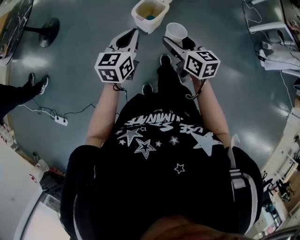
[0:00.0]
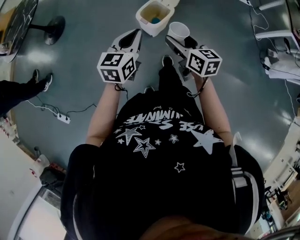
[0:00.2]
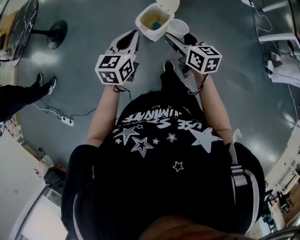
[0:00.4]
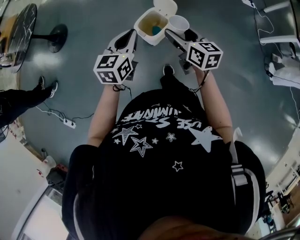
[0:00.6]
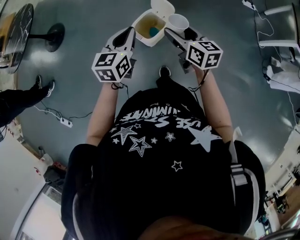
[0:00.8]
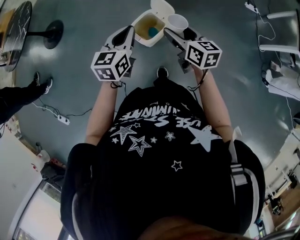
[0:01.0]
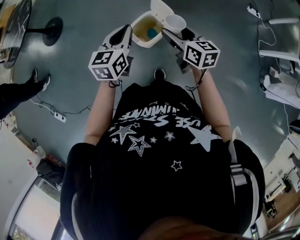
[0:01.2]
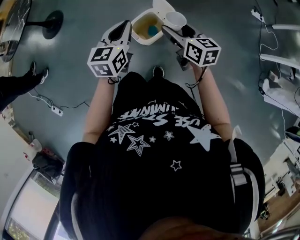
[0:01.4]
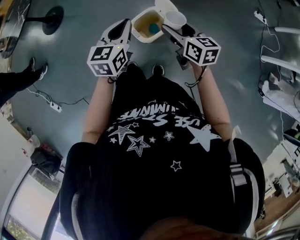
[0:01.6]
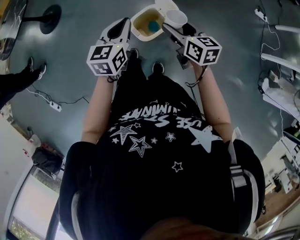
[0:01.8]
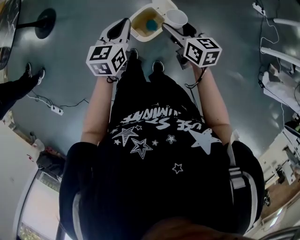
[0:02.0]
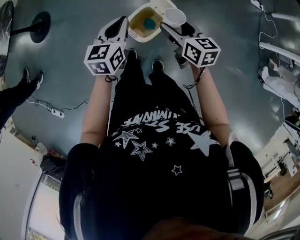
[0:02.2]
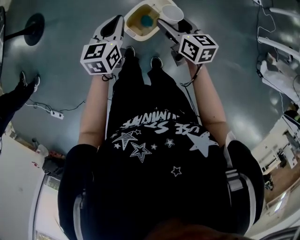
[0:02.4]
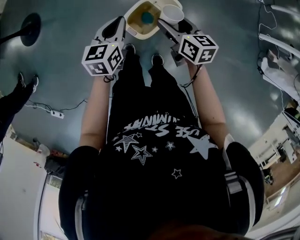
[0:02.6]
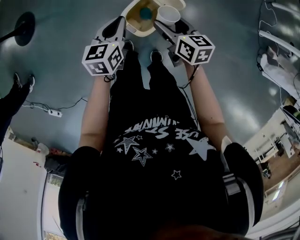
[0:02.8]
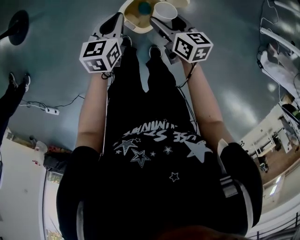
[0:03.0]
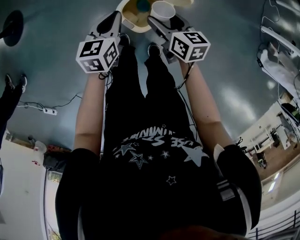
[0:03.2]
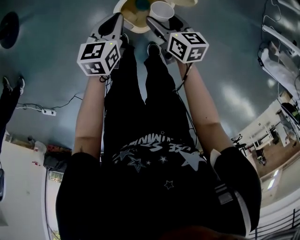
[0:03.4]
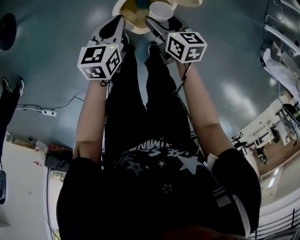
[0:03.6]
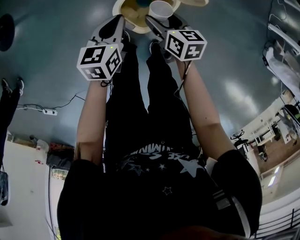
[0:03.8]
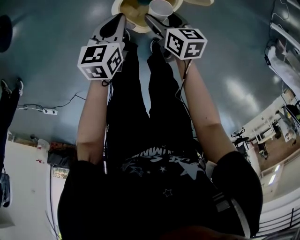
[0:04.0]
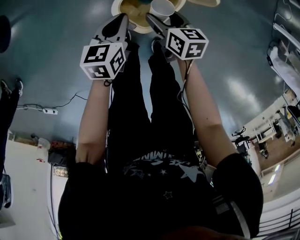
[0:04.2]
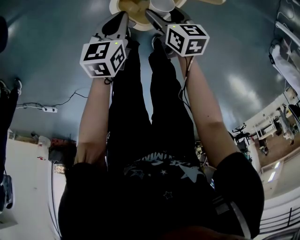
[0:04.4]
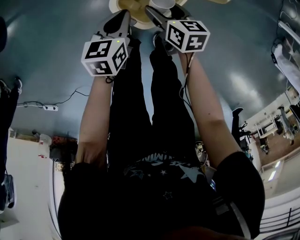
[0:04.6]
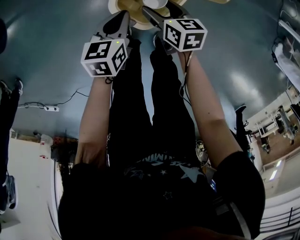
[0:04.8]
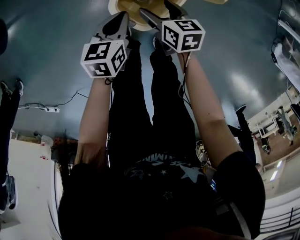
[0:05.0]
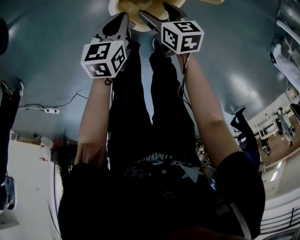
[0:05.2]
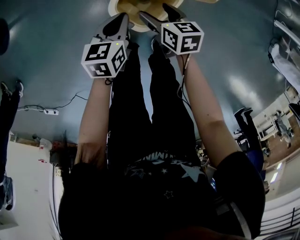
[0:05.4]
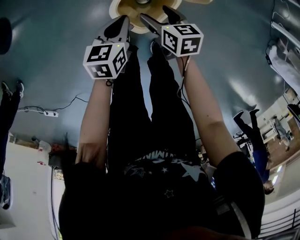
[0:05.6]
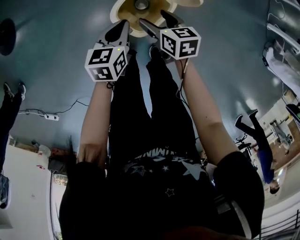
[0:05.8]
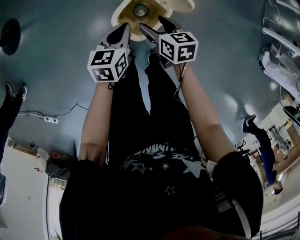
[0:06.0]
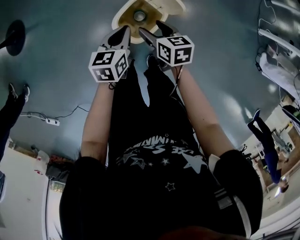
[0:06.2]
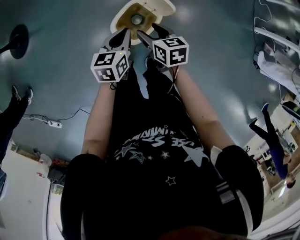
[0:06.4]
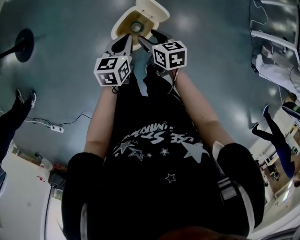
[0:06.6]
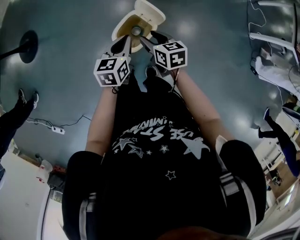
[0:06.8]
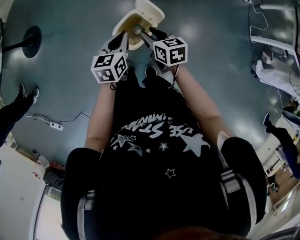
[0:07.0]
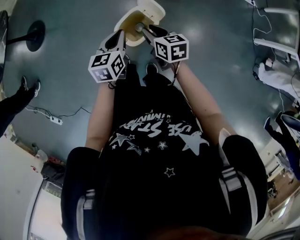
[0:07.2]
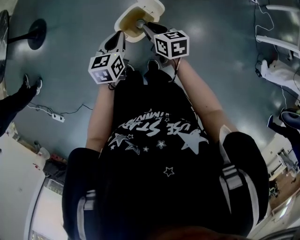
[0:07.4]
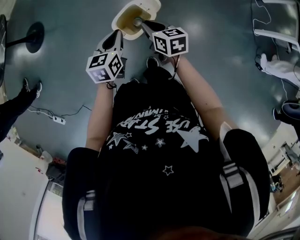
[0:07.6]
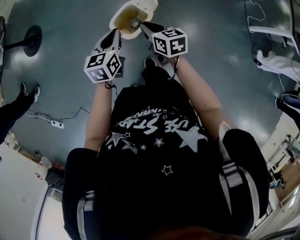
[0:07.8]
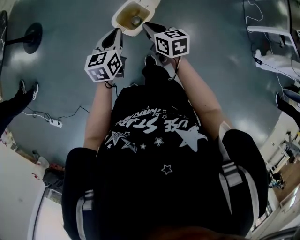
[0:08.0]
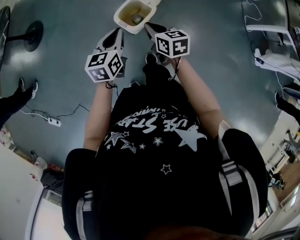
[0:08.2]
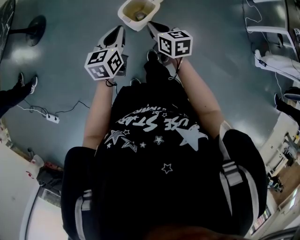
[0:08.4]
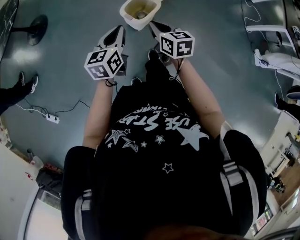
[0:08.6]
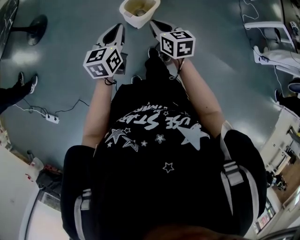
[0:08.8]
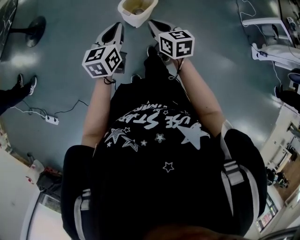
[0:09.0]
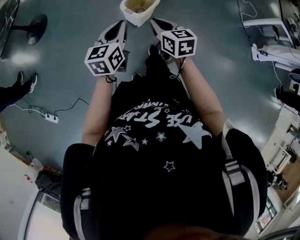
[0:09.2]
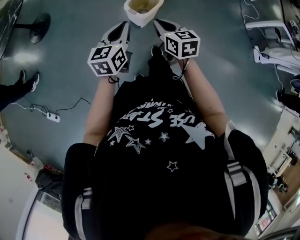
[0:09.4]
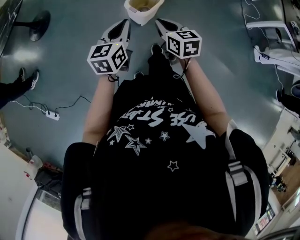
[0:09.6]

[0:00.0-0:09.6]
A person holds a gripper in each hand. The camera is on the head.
0:00.0 to 0:01.6: The left gripper travels forward by roughly 25 cm; the right gripper goes some 30 cm forward and to the right.
0:01.6 to 0:03.2: The two grippers go approximately 20 cm downward and forward.
0:03.2 to 0:04.8: The grippers both shift downward by roughly 20 cm.
0:04.8 to 0:06.4: Both grippers move upward, some 20 cm.
0:06.4 to 0:08.0: Both grippers move backward and upward, approximately 20 cm. The right gripper closes up.
0:08.0 to 0:09.6: Both grippers travel together backward and to the left, roughly 20 cm.

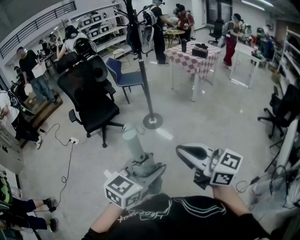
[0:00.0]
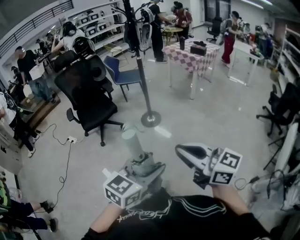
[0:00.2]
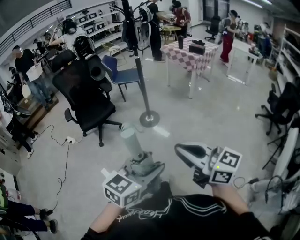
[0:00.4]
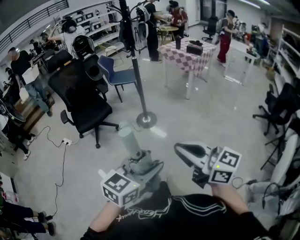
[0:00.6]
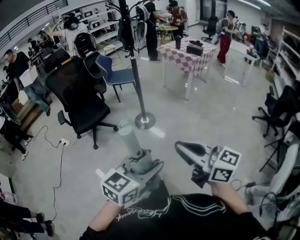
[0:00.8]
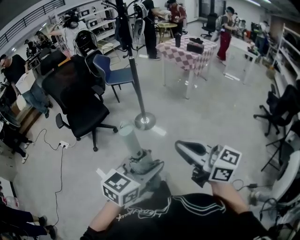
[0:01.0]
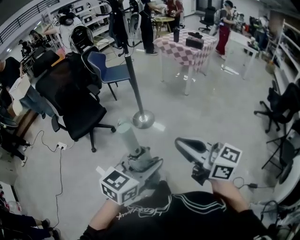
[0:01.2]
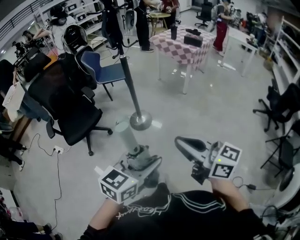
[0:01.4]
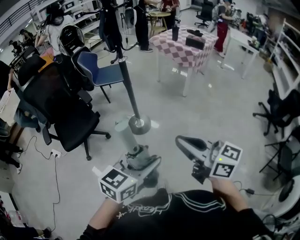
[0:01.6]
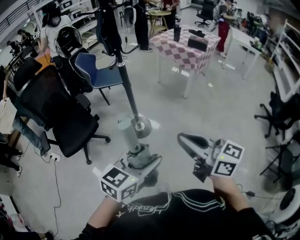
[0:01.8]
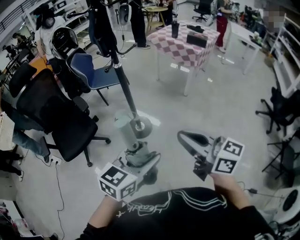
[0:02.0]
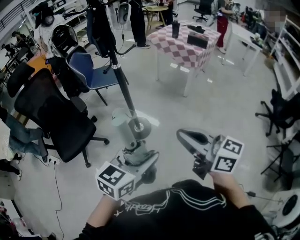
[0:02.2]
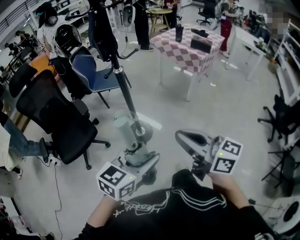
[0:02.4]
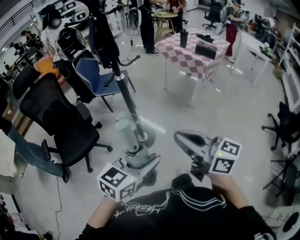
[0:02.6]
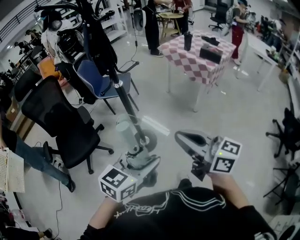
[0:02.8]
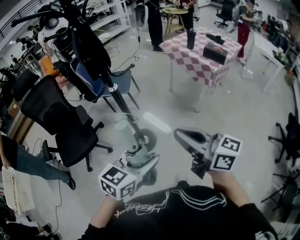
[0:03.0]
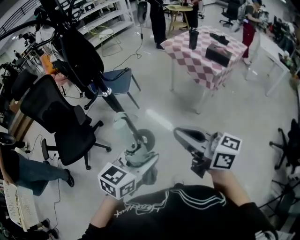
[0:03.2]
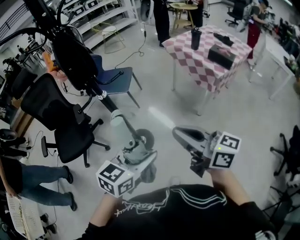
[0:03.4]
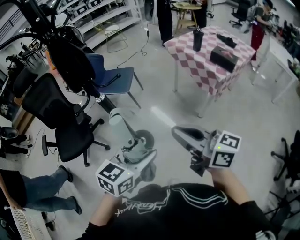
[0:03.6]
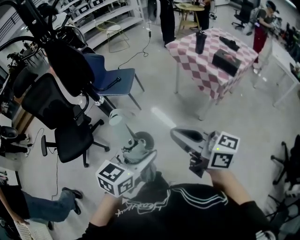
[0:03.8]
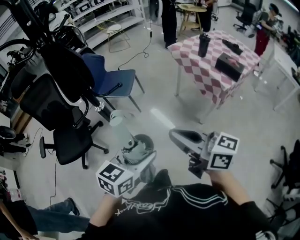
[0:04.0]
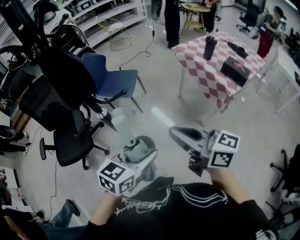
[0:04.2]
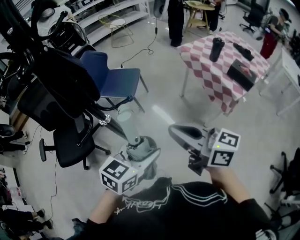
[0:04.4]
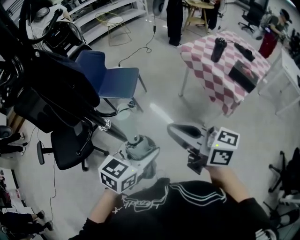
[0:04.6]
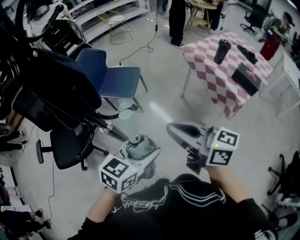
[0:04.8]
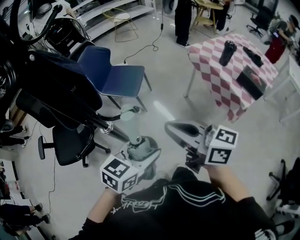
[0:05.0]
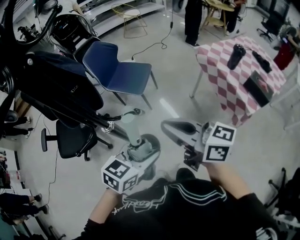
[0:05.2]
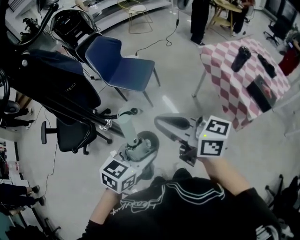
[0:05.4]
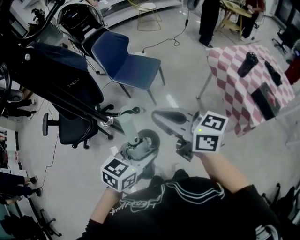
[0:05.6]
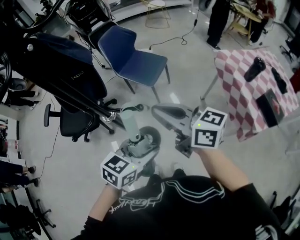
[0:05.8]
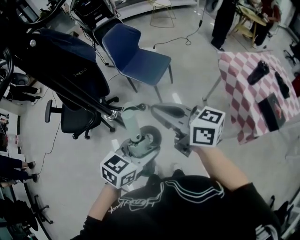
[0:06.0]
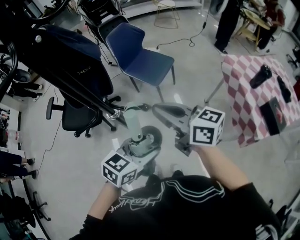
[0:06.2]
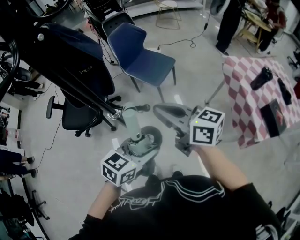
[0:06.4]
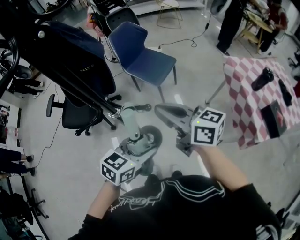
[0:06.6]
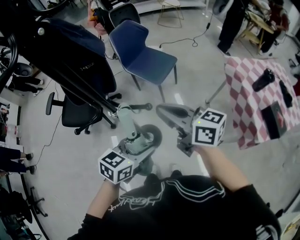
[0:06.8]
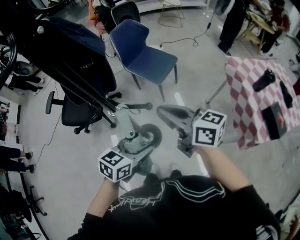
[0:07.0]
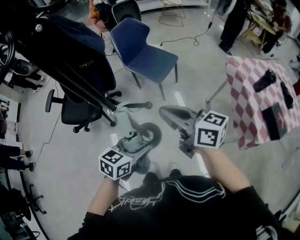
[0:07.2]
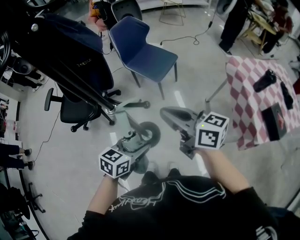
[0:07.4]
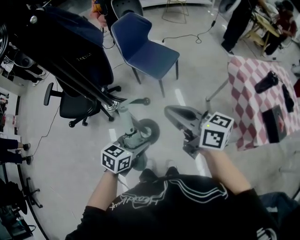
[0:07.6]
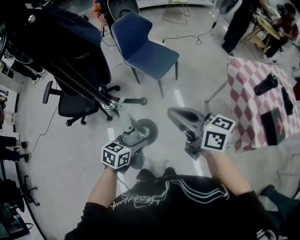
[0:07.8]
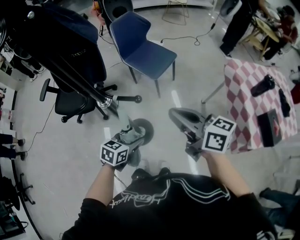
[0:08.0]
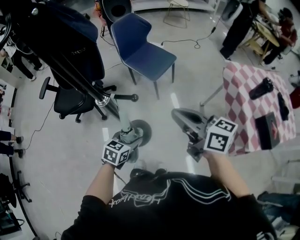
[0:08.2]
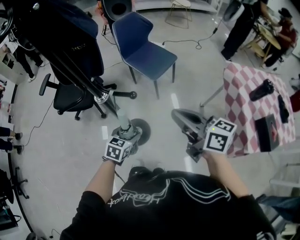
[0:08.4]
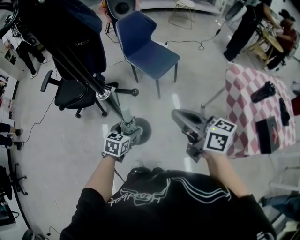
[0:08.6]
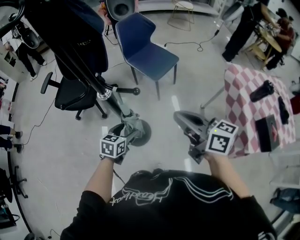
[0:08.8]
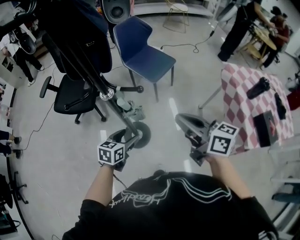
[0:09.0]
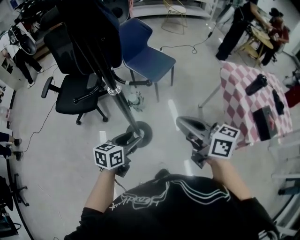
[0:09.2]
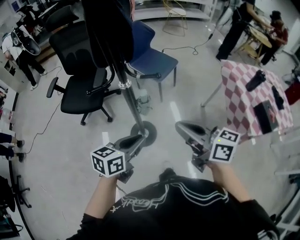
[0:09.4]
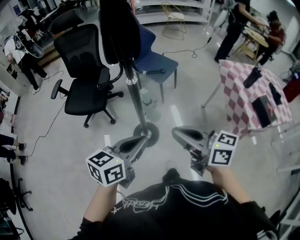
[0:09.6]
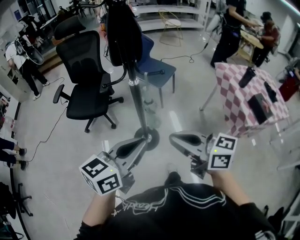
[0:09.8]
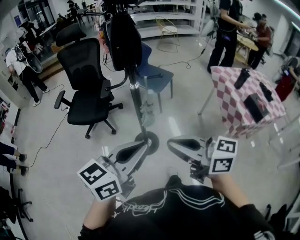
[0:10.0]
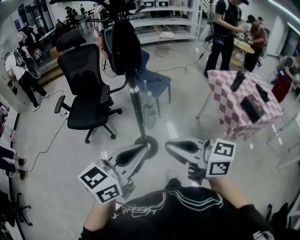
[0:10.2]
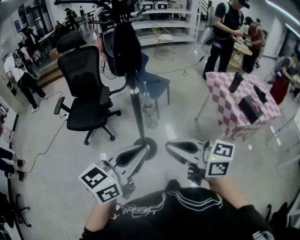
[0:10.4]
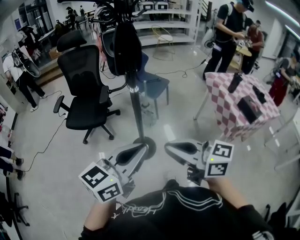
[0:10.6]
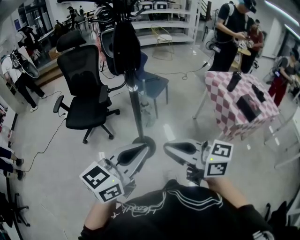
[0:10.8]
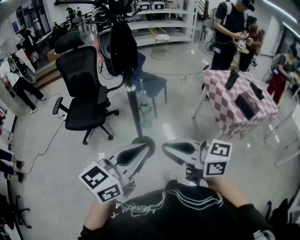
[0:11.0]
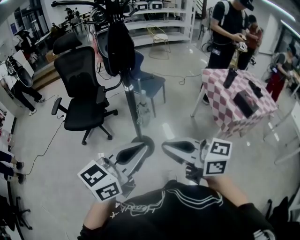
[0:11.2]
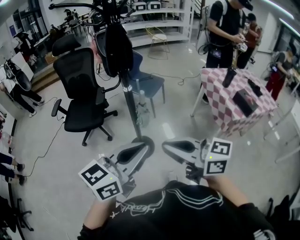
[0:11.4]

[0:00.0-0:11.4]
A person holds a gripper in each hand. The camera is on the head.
0:00.0 to 0:01.4: The two grippers go roughly 30 cm forward.
0:01.4 to 0:02.8: Both grippers move forward, roughly 35 cm.
0:02.8 to 0:04.2: Both grippers move forward and to the right, some 30 cm.
0:04.2 to 0:05.6: The left gripper moves forward and downward, roughly 15 cm. Meanwhile the right gripper shifts roughly 20 cm forward.
0:05.6 to 0:07.2: Both grippers travel together downward, some 5 cm.
0:07.2 to 0:08.6: The right gripper travels to the right by roughly 5 cm, while the left gripper goes approximately 15 cm downward, and swivels roughly 20 degrees.
0:08.6 to 0:10.0: The left gripper moves upward and backward, about 40 cm, points its fingers roughly 40 degrees further upward, and closes up, while the right gripper heads backward, to the left and upward, covering about 35 cm.
0:10.0 to 0:11.4: The grippers both shift backward by some 5 cm.

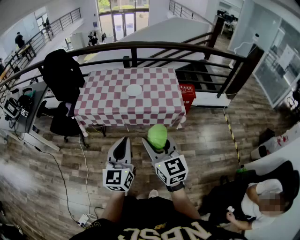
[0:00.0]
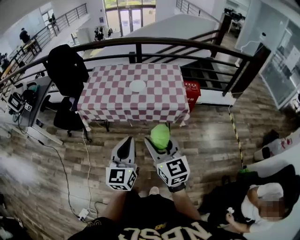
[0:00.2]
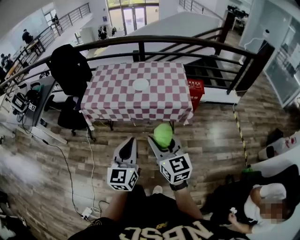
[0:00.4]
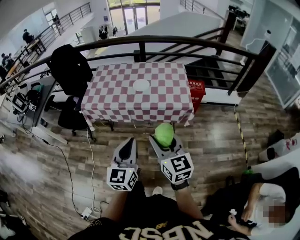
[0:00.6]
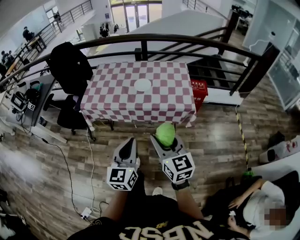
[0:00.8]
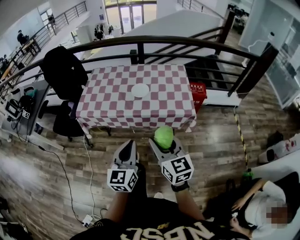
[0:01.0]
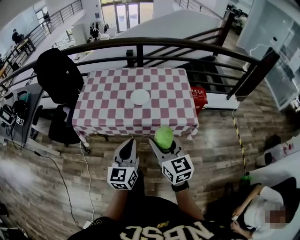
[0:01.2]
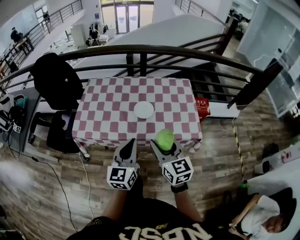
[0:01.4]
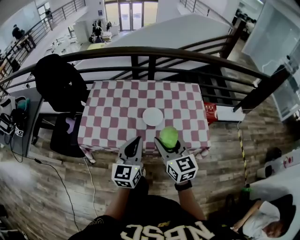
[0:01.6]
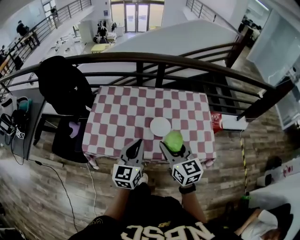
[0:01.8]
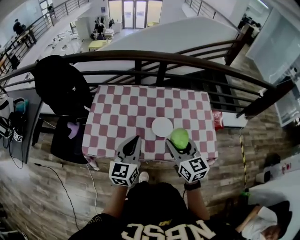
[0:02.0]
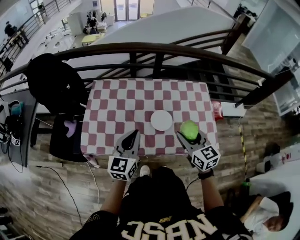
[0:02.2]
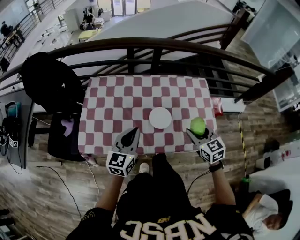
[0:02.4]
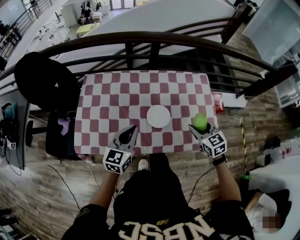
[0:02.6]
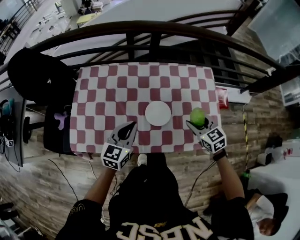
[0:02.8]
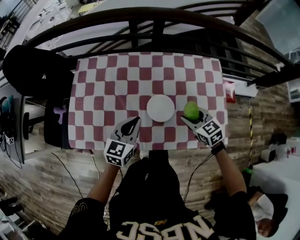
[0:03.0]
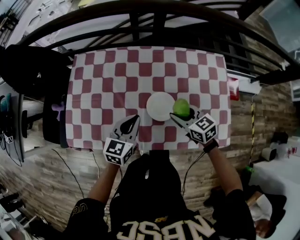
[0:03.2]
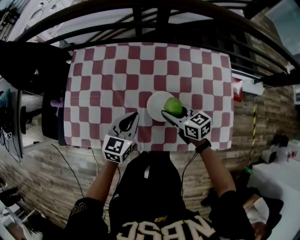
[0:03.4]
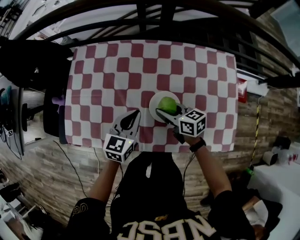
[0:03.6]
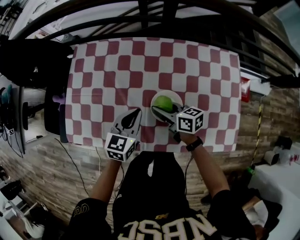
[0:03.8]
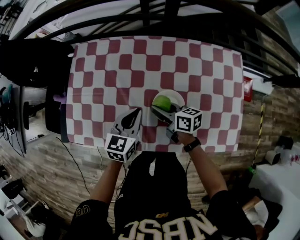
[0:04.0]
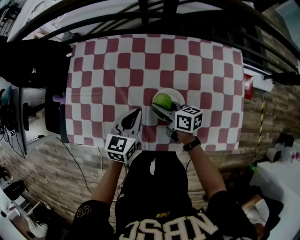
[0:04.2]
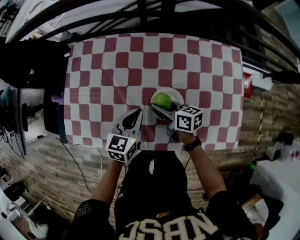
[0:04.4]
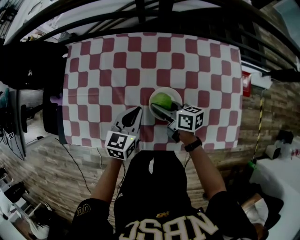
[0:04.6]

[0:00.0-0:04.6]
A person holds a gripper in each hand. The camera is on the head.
0:00.0 to 0:01.6: The two grippers go approximately 35 cm forward.
0:01.6 to 0:03.0: The right gripper shifts approximately 30 cm downward, forward and to the right, and turns by some 30 degrees; the left gripper travels forward and downward by some 25 cm, and turns by some 20 degrees.
0:03.0 to 0:04.6: The left gripper moves downward, approximately 10 cm. Meanwhile the right gripper shifts approximately 15 cm to the left, downward and forward, and twists some 40 degrees clockwise, seen from behind.
